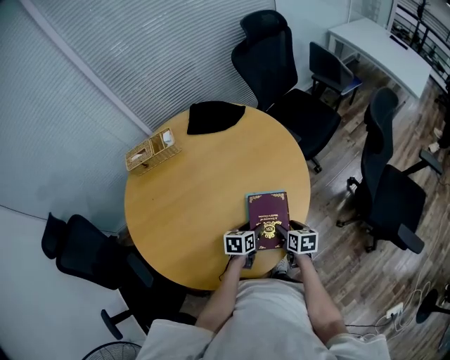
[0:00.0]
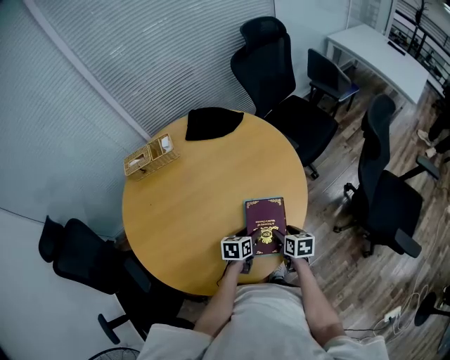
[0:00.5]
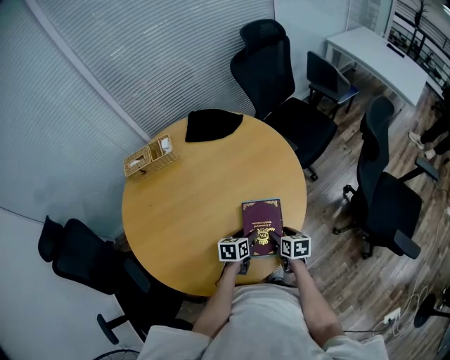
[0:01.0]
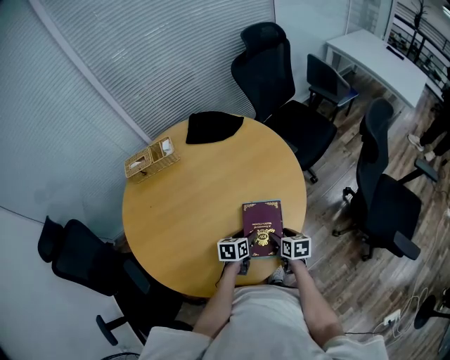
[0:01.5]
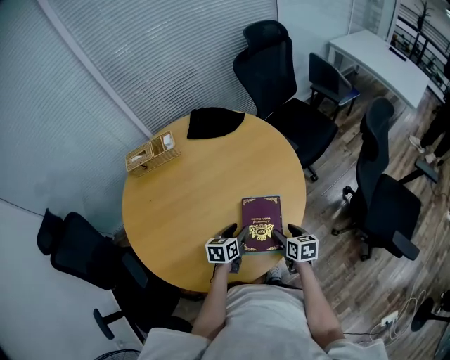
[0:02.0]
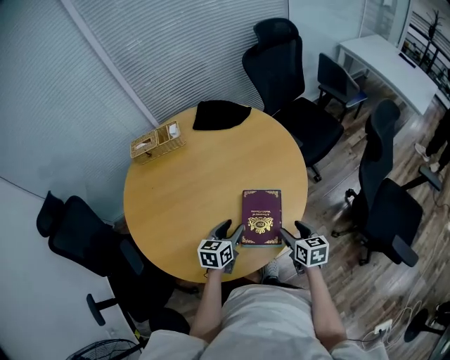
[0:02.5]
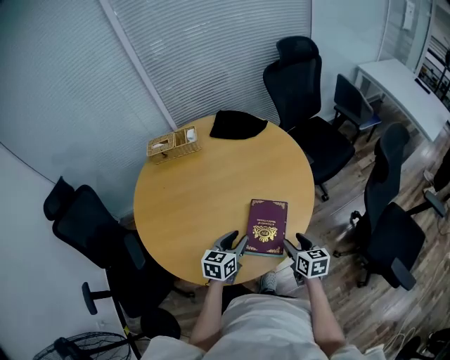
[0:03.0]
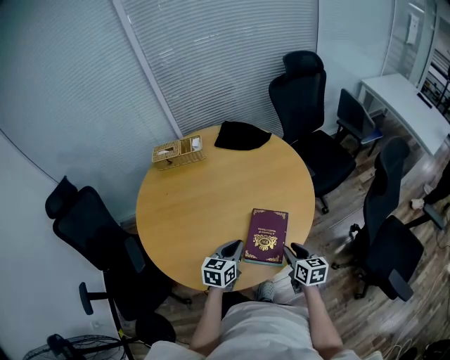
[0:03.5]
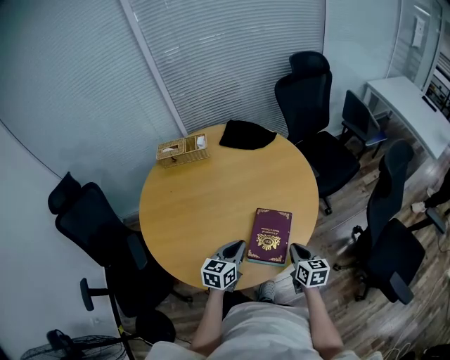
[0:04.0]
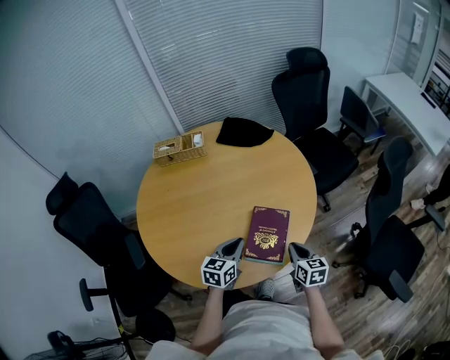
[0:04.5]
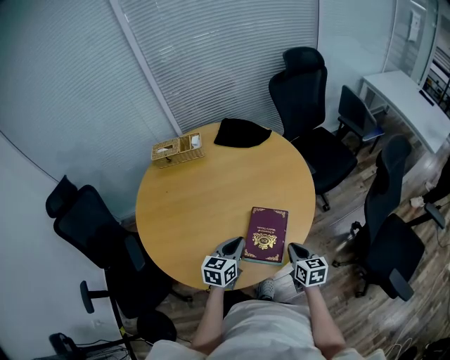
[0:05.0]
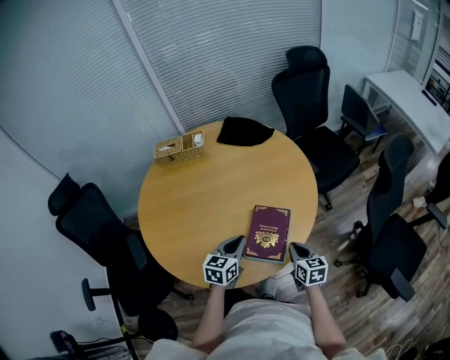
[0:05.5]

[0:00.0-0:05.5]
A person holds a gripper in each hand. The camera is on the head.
0.0 to 2.0 s: The left gripper changes place by about 5 cm.
2.0 to 3.5 s: The right gripper shifts roughly 5 cm upward, and closes up. The left gripper goes about 10 cm upward and backward, and closes its fingers.
3.5 to 5.5 s: The right gripper closes up.

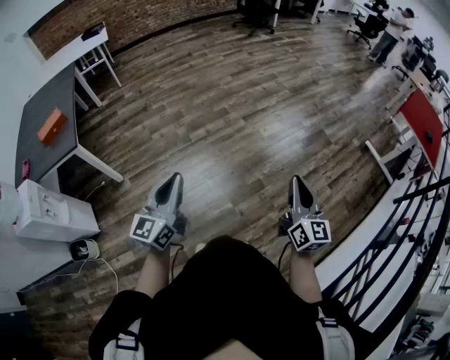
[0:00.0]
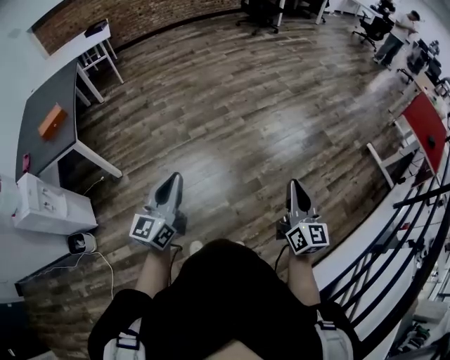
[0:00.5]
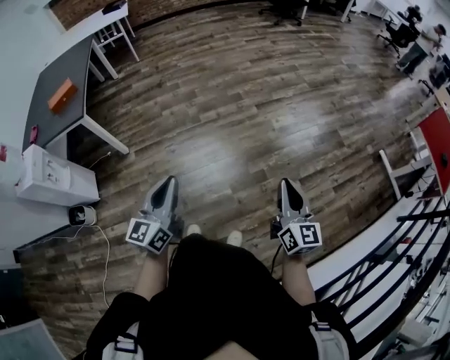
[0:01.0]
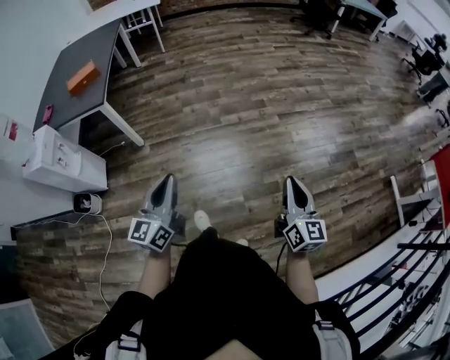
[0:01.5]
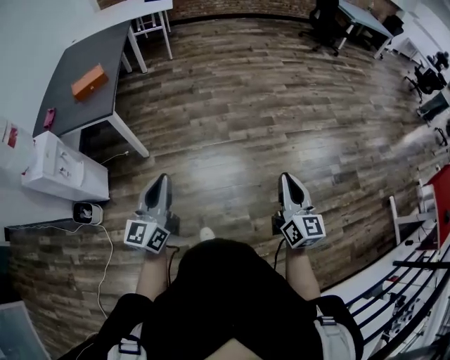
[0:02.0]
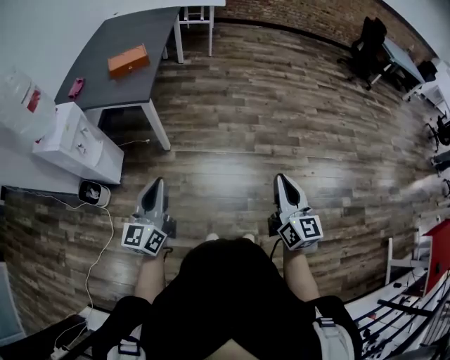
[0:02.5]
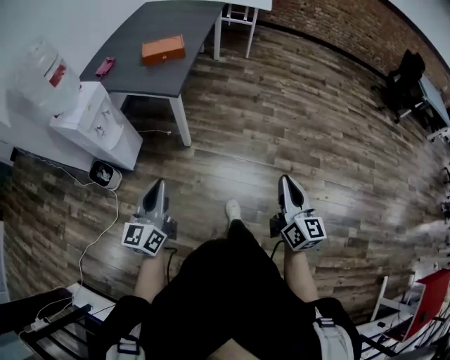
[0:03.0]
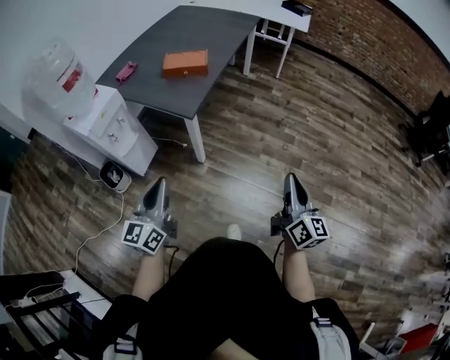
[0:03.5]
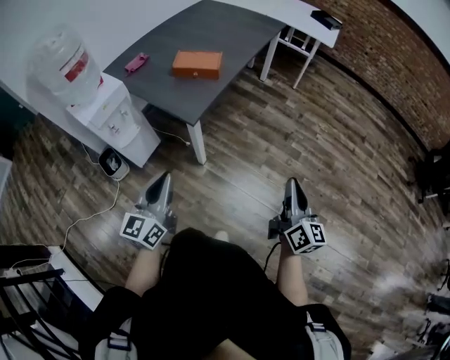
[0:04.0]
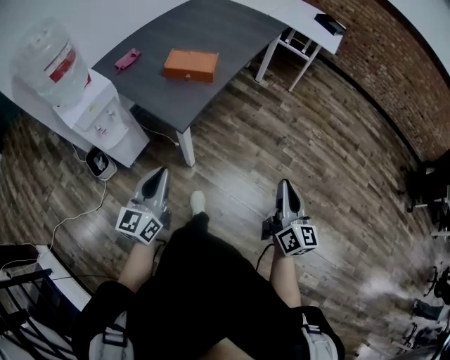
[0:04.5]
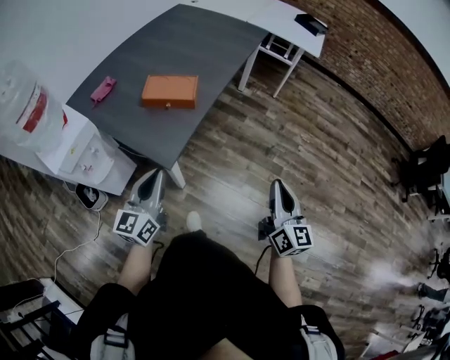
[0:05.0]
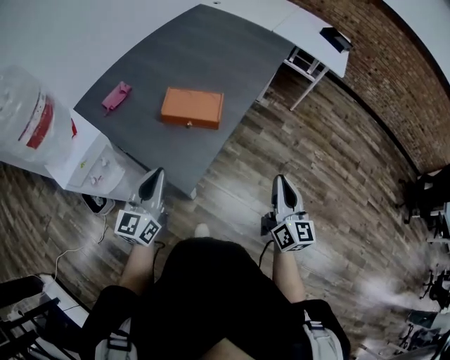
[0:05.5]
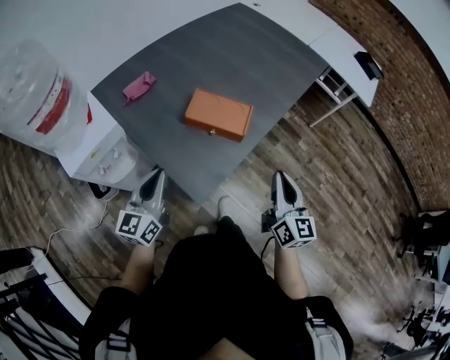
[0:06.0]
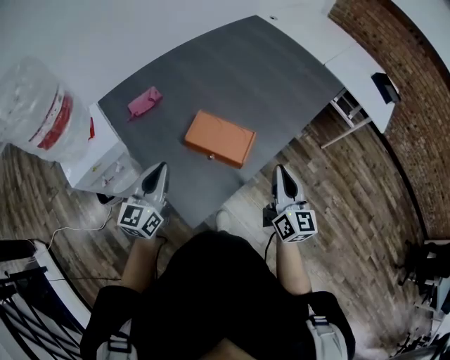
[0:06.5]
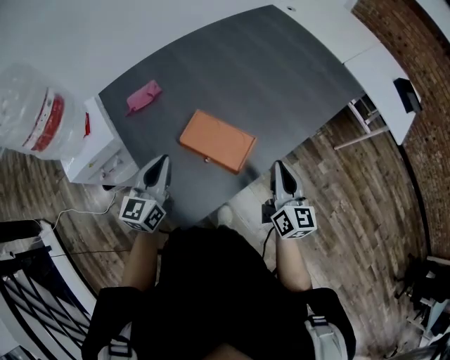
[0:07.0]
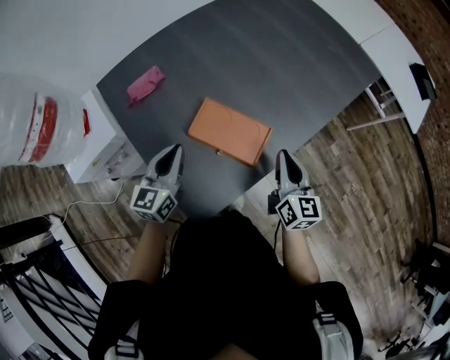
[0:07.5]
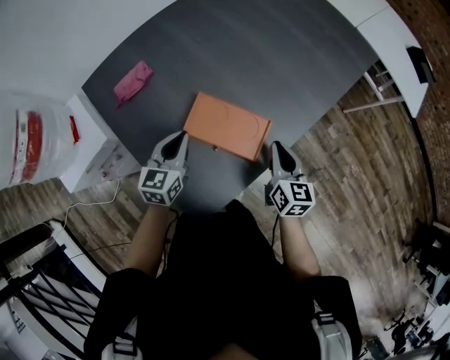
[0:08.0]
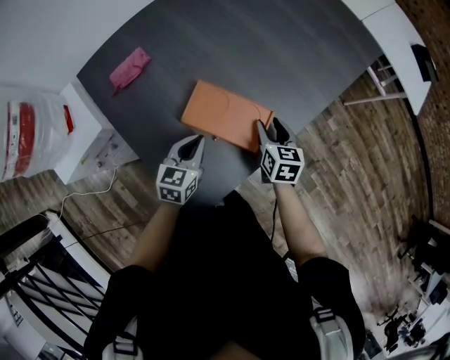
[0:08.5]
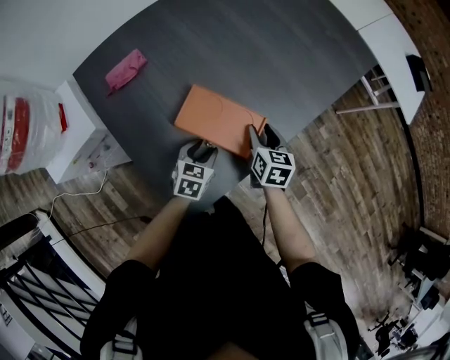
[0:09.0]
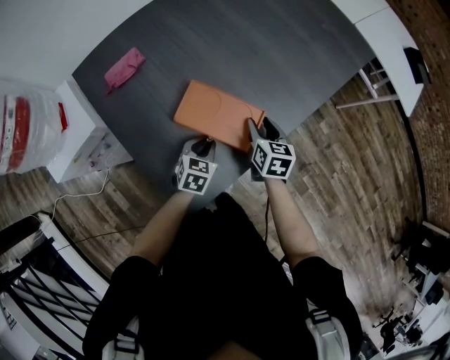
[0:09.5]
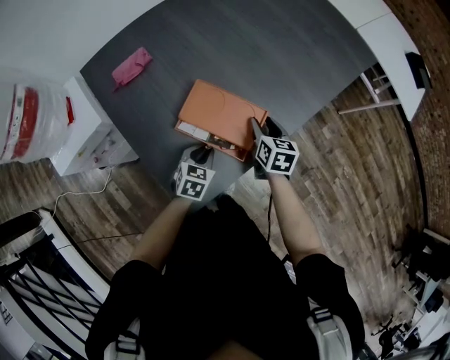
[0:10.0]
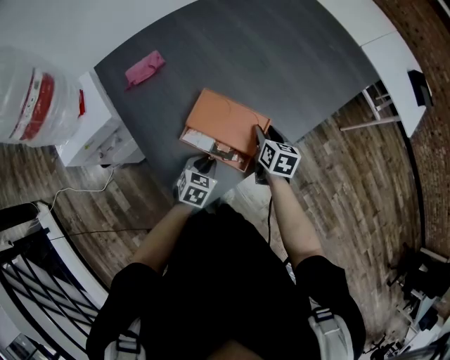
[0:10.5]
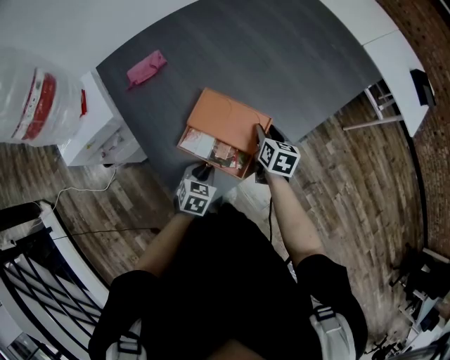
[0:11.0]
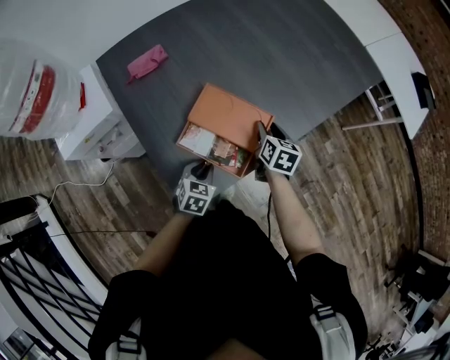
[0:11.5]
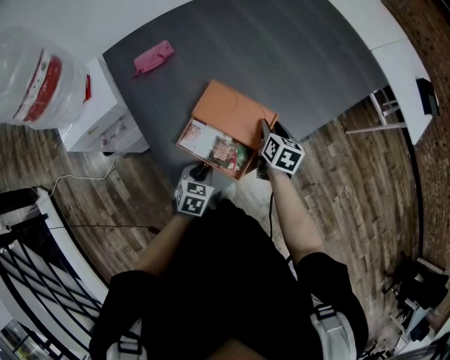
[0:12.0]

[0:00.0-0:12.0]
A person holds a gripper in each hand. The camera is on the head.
0.0 to 2.0 s: The right gripper shifts some 20 cm to the left and forward, and turns by about 20 degrees. The left gripper shifts roughly 15 cm to the left, and swivels about 20 degrees.
2.0 to 4.0 s: The left gripper changes place by roughly 25 cm, and changes its angle by about 40 degrees. The right gripper shifts by approximately 50 cm, and swivels approximately 40 degrees.
4.0 to 6.0 s: The left gripper goes some 30 cm forward, while the right gripper heads forward and to the left, covering some 40 cm, and changes its angle by roughly 20 degrees.
6.0 to 8.0 s: Both grippers travel together forward and downward, approximately 20 cm. The left gripper turns by approximately 20 degrees.
8.0 to 10.0 s: The left gripper travels downward, to the right and backward by approximately 15 cm, swivels roughly 30 degrees, and opens and closes again. Meanwhile the right gripper goes about 10 cm downward and forward, and opens.
10.0 to 12.0 s: The left gripper heads backward, covering about 5 cm.

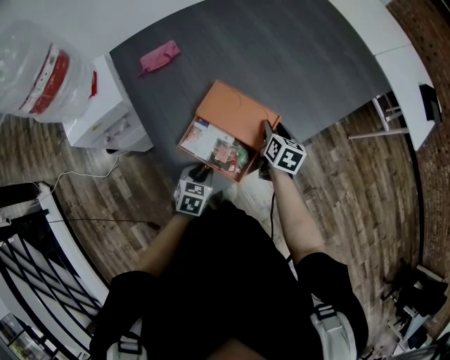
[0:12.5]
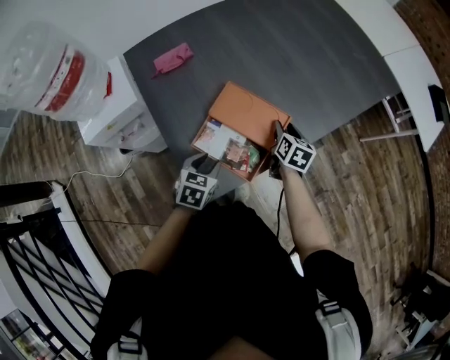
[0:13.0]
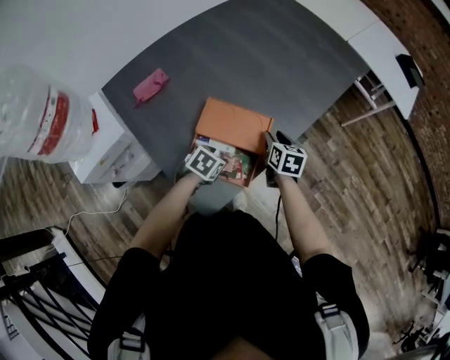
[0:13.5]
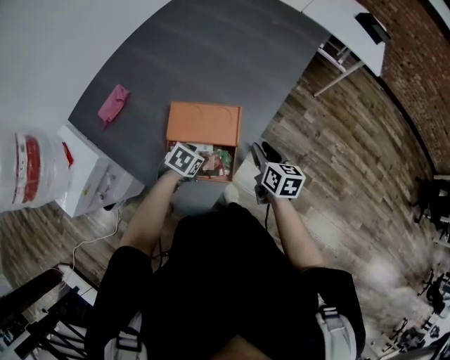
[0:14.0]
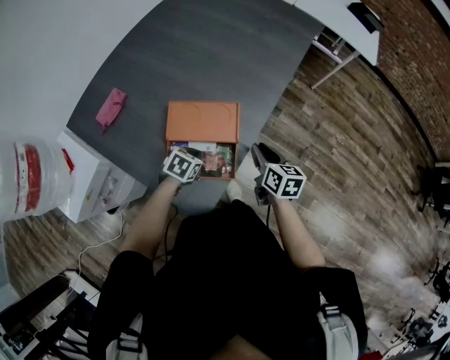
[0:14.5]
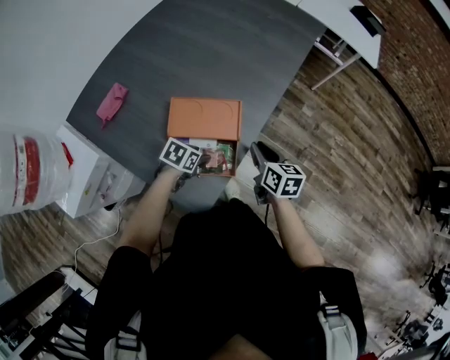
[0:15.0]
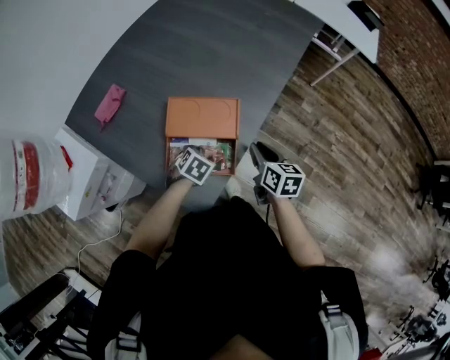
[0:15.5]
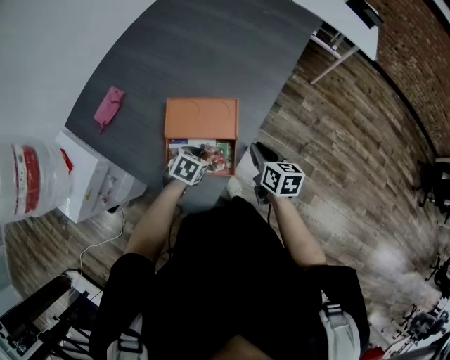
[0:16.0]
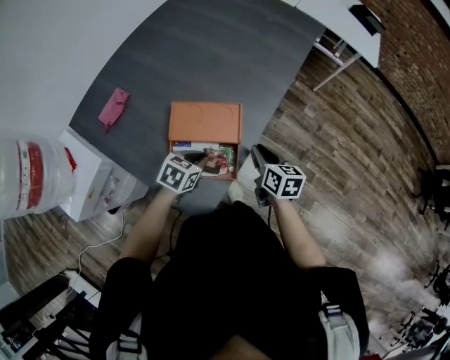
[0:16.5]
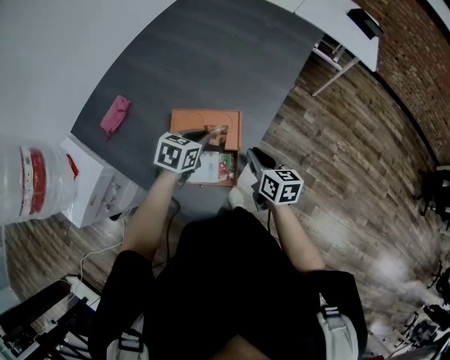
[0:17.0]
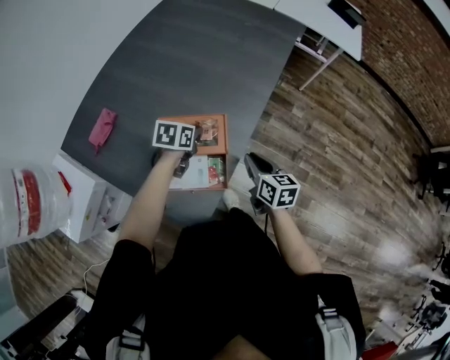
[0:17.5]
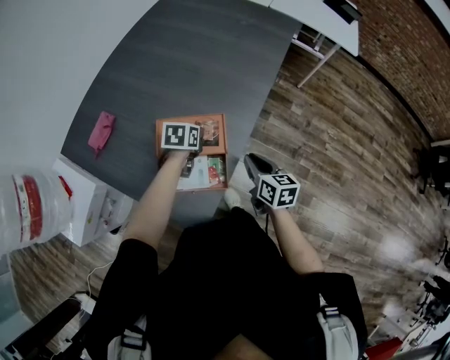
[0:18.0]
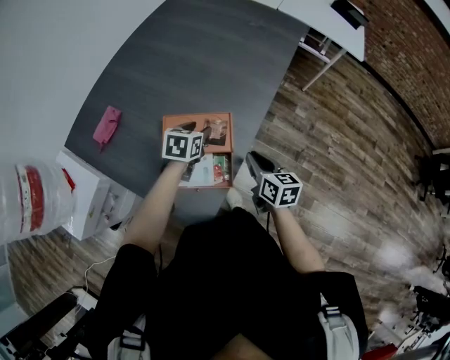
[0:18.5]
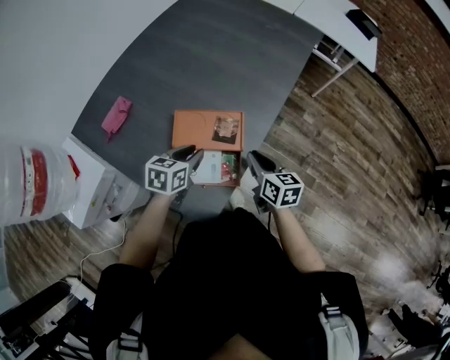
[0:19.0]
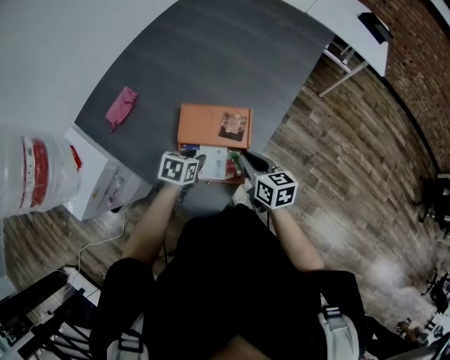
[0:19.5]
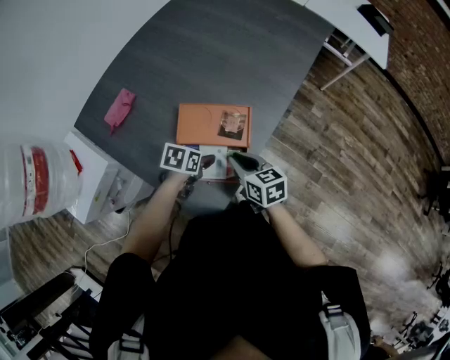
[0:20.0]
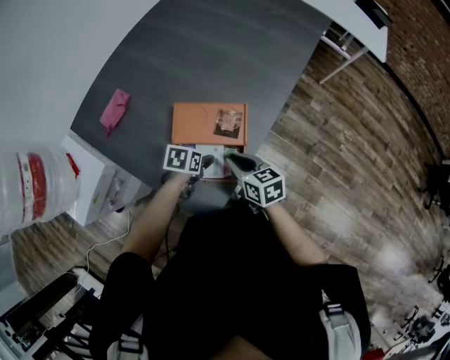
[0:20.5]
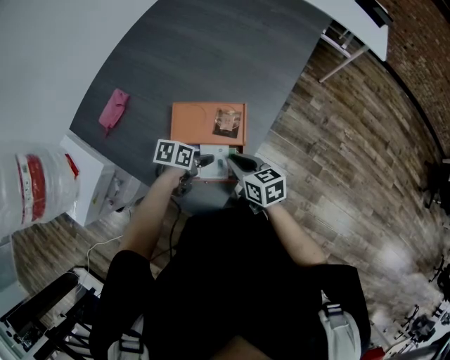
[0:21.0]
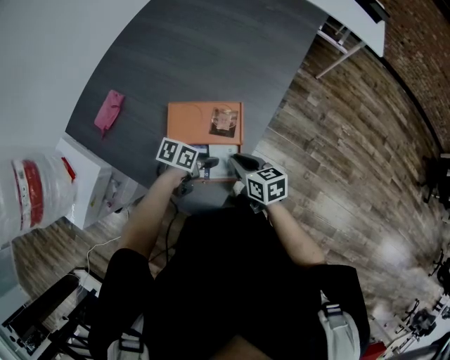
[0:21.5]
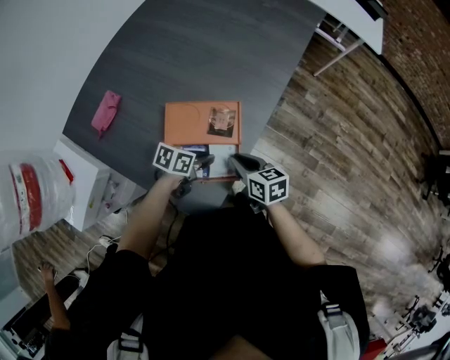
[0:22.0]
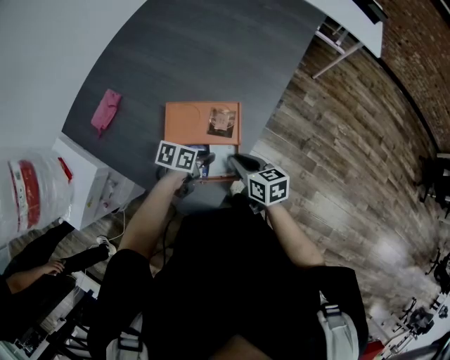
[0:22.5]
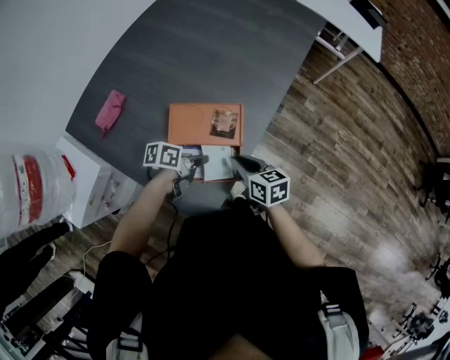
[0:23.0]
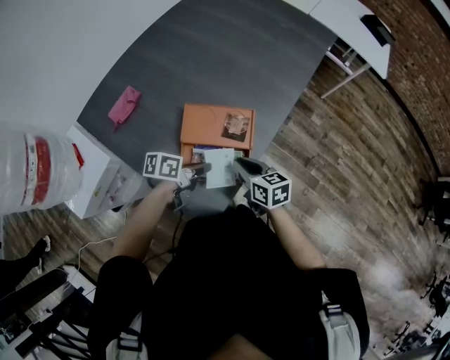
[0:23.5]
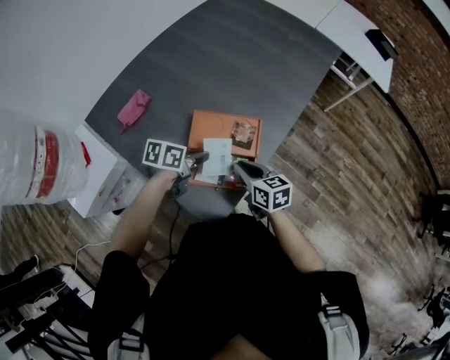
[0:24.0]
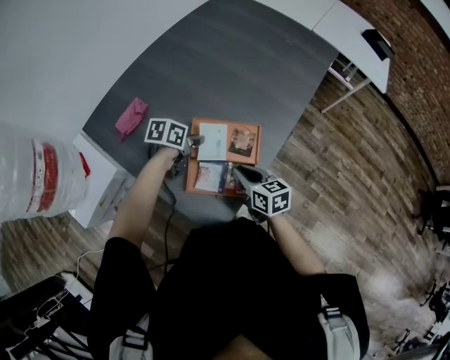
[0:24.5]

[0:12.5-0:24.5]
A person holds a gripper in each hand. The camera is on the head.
12.5 to 14.5 s: The right gripper changes place by some 15 cm, and closes its fingers; the left gripper ends up some 10 cm from where it was, rotates about 40 degrees, and opens, then closes once more.
14.5 to 16.5 s: The left gripper moves upward, about 5 cm, and opens, then closes again.
16.5 to 18.5 s: The left gripper moves forward, roughly 15 cm, and opens up.
18.5 to 20.5 s: The right gripper heads to the left, covering approximately 10 cm, and rotates some 20 degrees. The left gripper travels backward and downward by roughly 15 cm, and rotates approximately 20 degrees.
20.5 to 22.5 s: The left gripper ends up approximately 5 cm from where it was, swivels roughly 20 degrees, and closes up.
22.5 to 24.5 s: The left gripper shifts roughly 15 cm to the left, forward and upward. The right gripper moves about 5 cm.
